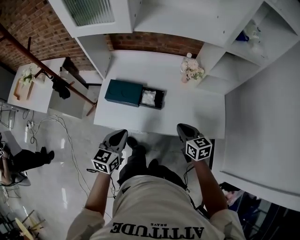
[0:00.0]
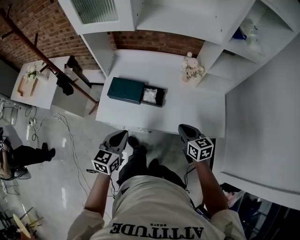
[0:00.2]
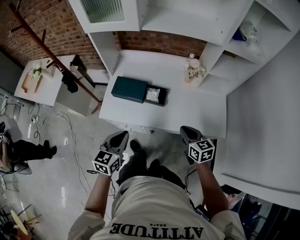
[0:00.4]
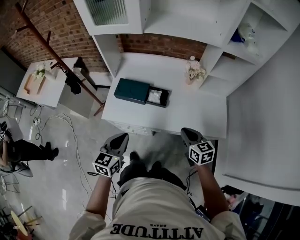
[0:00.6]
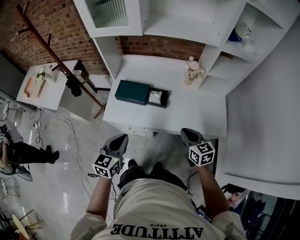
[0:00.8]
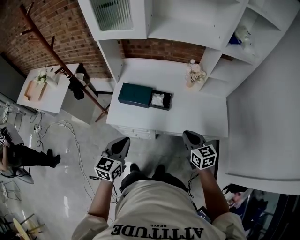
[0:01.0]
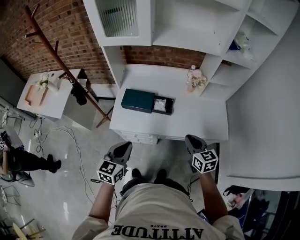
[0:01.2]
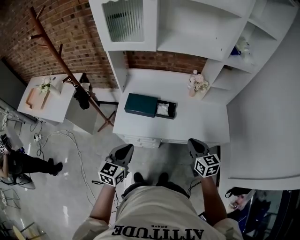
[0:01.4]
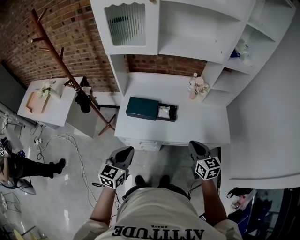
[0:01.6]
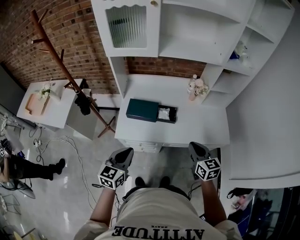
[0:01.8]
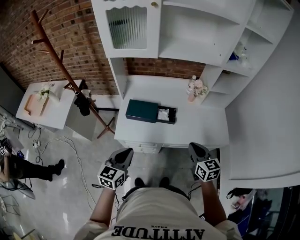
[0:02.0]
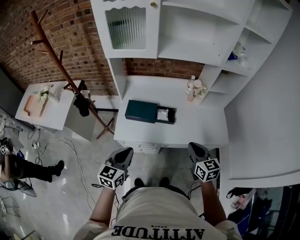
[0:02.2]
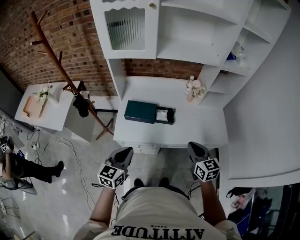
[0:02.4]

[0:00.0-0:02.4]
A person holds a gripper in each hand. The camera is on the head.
0:00.0 to 0:01.2: The right gripper shifts approximately 10 cm backward and upward. The left gripper heads backward, to the left and upward, covering about 15 cm.
0:01.2 to 0:02.4: The right gripper moves some 5 cm.

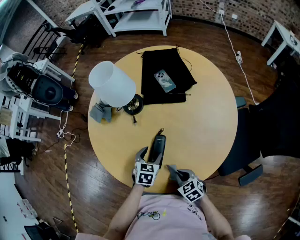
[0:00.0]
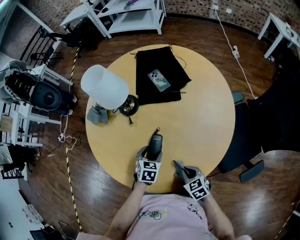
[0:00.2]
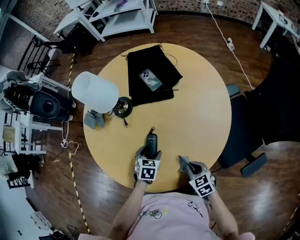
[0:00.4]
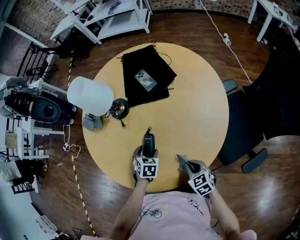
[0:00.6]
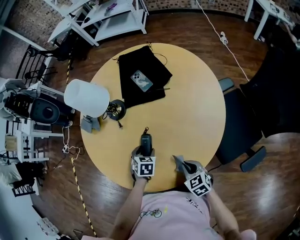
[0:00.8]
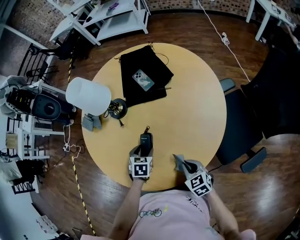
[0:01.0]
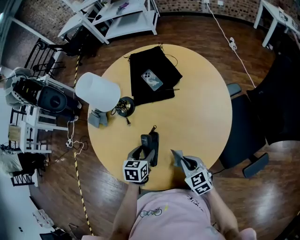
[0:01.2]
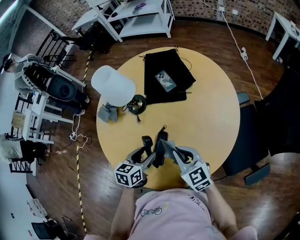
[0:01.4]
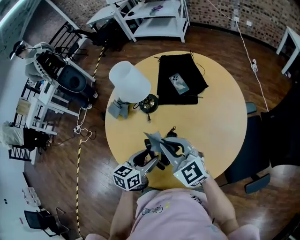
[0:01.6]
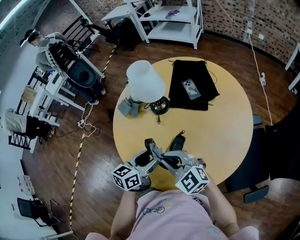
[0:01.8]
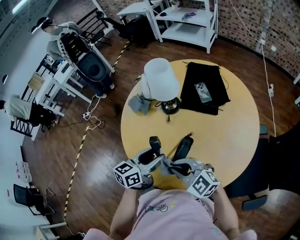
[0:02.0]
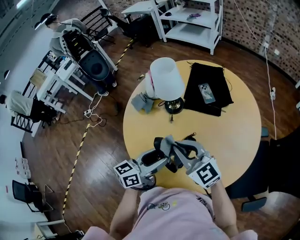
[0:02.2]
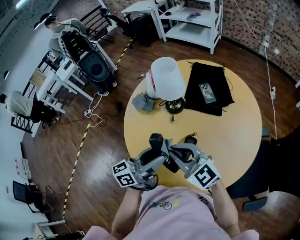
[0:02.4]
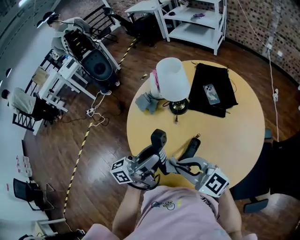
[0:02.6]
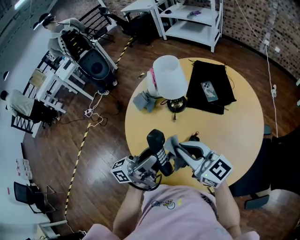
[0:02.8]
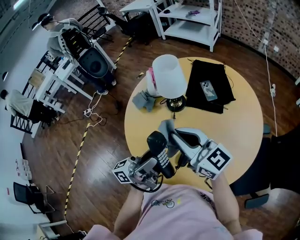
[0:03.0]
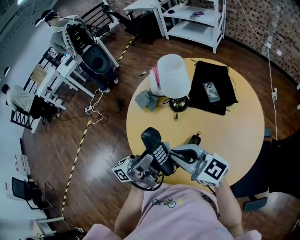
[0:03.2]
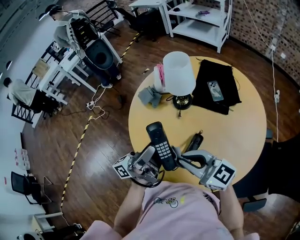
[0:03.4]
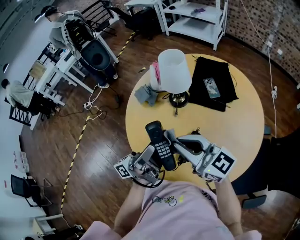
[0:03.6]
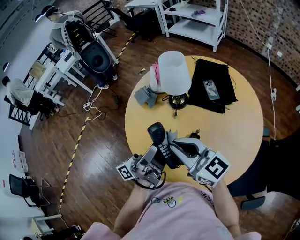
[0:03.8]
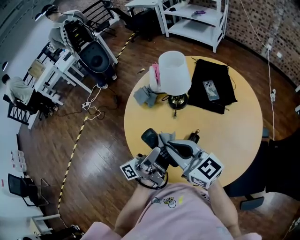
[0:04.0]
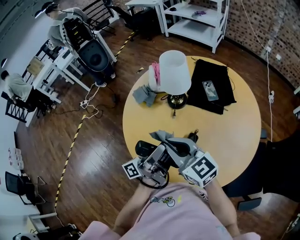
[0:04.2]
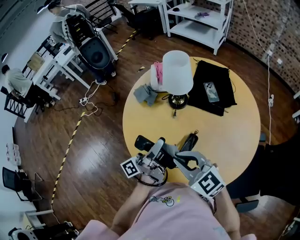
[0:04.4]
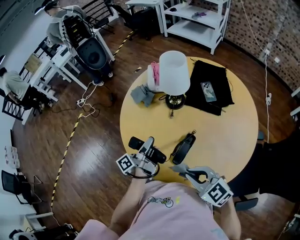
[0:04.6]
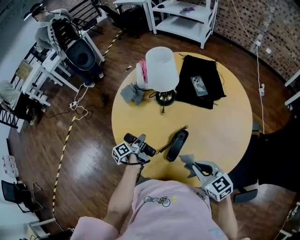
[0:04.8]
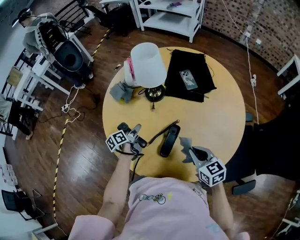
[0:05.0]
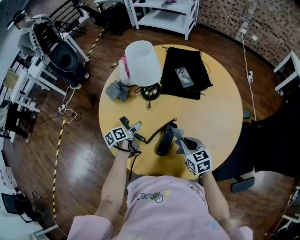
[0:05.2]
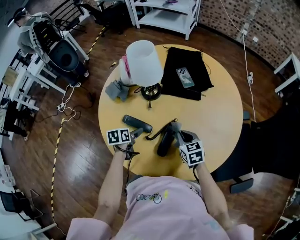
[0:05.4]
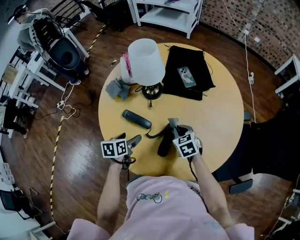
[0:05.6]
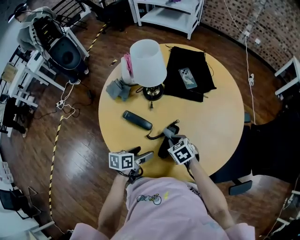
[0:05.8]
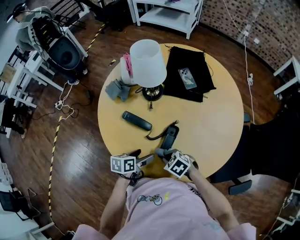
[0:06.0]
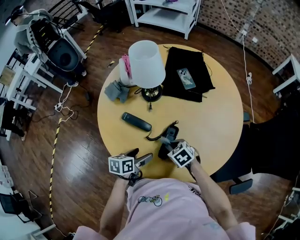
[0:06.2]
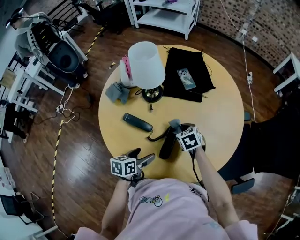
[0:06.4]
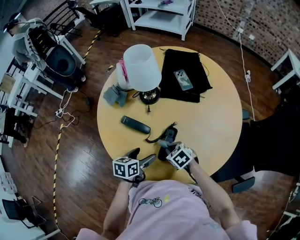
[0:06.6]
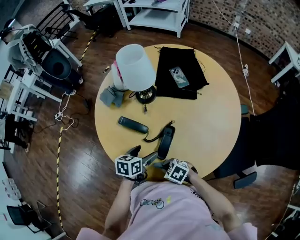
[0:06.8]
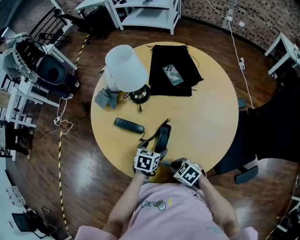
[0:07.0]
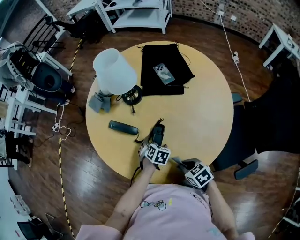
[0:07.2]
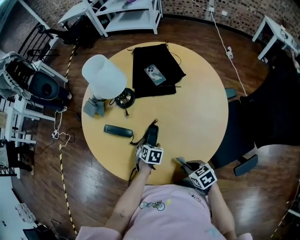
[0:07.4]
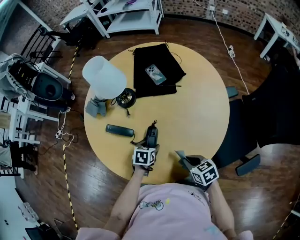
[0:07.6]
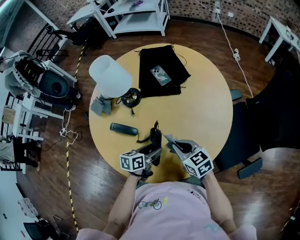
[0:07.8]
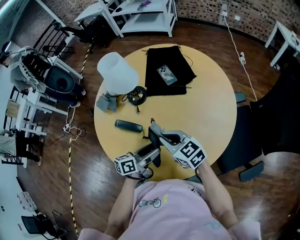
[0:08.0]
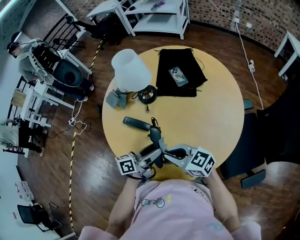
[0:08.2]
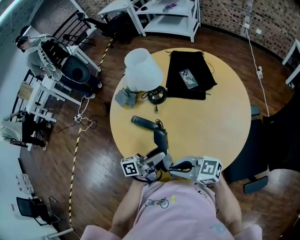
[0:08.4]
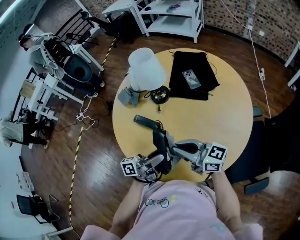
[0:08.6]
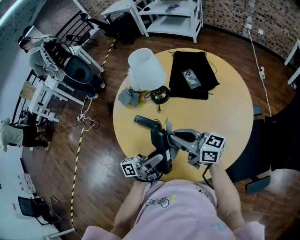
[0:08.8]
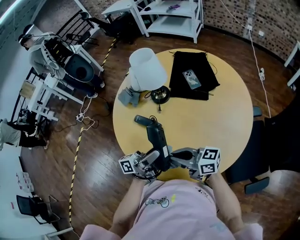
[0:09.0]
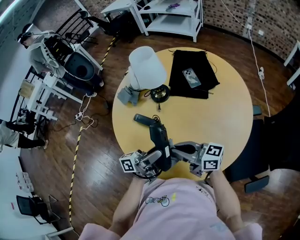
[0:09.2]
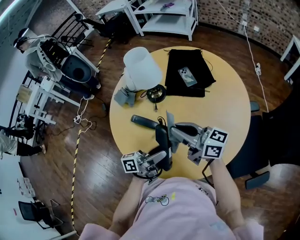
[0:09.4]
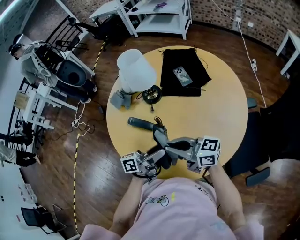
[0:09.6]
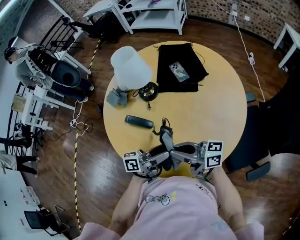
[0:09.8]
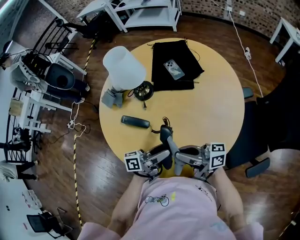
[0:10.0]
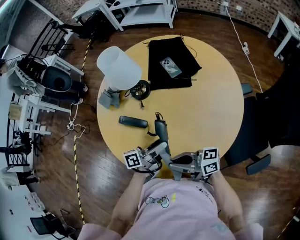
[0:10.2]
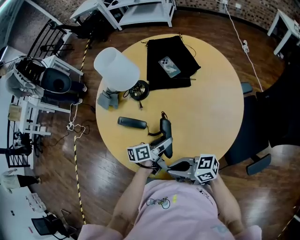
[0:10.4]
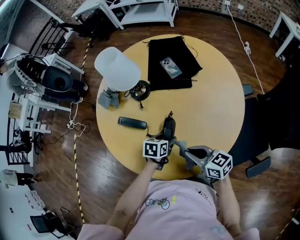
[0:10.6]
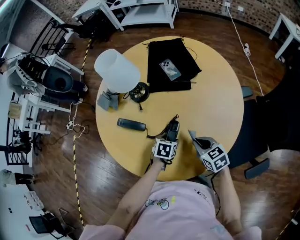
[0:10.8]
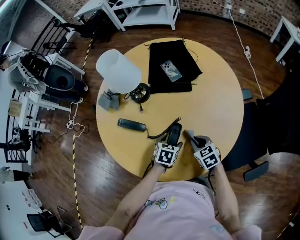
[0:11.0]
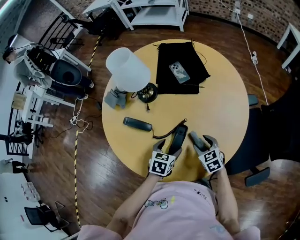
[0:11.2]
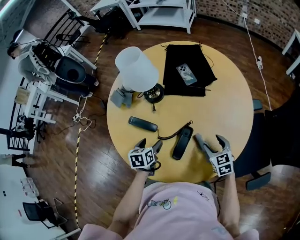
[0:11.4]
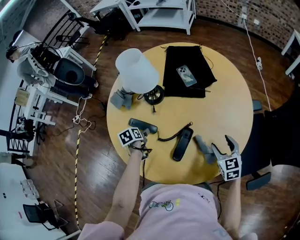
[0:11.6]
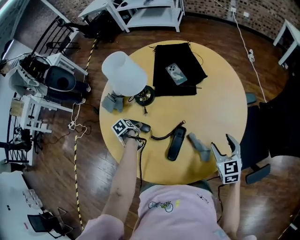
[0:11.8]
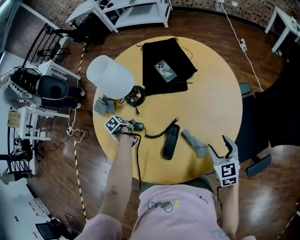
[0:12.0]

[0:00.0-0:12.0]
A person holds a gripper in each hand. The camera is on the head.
0:00.0 to 0:01.6: The left gripper heads upward, covering some 15 cm, and rotates approximately 30 degrees; the right gripper moves upward and forward, some 30 cm, and tips its fingers upward by approximately 40 degrees.
0:01.6 to 0:03.0: The left gripper travels upward and to the left by roughly 15 cm, and points its fingers approximately 60 degrees further upward. Meanwhile the right gripper is displaced upward and to the left by about 10 cm, and rotates some 30 degrees.
0:03.0 to 0:04.4: The right gripper moves up and down over some 10 cm, changing direction 2 times, and changes its angle by roughly 30 degrees. Meanwhile the left gripper moves downward, some 10 cm, and changes its angle by roughly 30 degrees.
0:04.4 to 0:06.0: Both grippers move downward, approximately 20 cm. The left gripper tilts its fingers roughly 60 degrees downward, and opens its fingers, while the right gripper tips its fingers downward by roughly 40 degrees.
0:06.0 to 0:07.6: The left gripper changes place by some 15 cm, and rotates about 40 degrees; the right gripper moves roughly 20 cm, and turns by roughly 50 degrees.
0:07.6 to 0:09.0: The left gripper goes some 25 cm upward, and tilts its fingers roughly 90 degrees upward. Meanwhile the right gripper shifts by about 20 cm, and points its fingers approximately 50 degrees further upward.
0:09.0 to 0:10.4: The left gripper shifts some 15 cm downward, and tilts its fingers about 50 degrees downward.
0:10.4 to 0:12.0: The left gripper moves up and down over some 10 cm, changing direction 2 times, and tips its fingers downward by roughly 50 degrees. The right gripper reaches approximately 15 cm downward, then returns, tilts its fingers some 30 degrees downward, and opens its fingers.

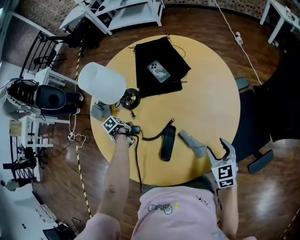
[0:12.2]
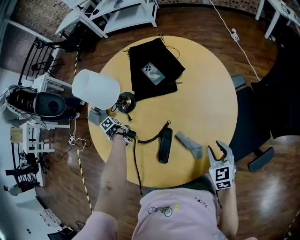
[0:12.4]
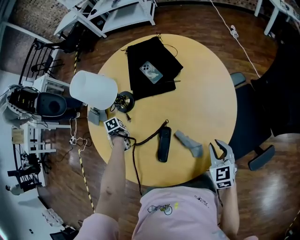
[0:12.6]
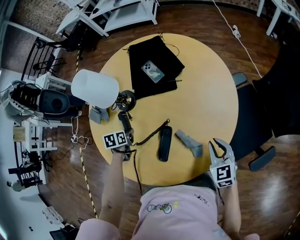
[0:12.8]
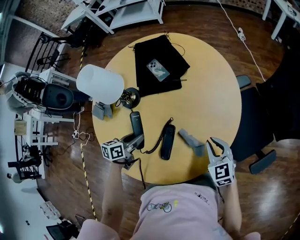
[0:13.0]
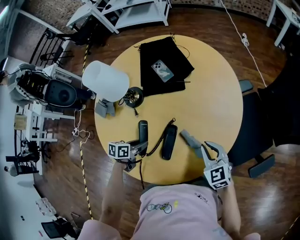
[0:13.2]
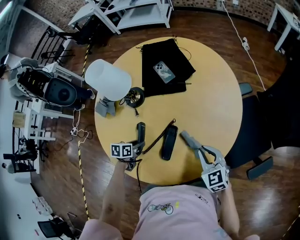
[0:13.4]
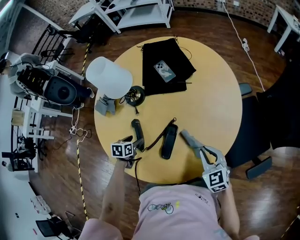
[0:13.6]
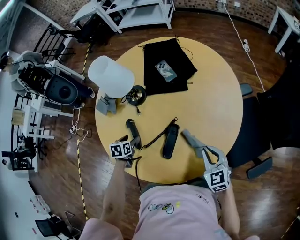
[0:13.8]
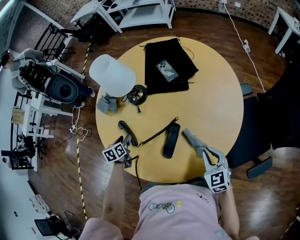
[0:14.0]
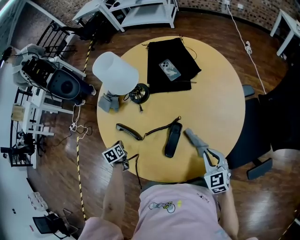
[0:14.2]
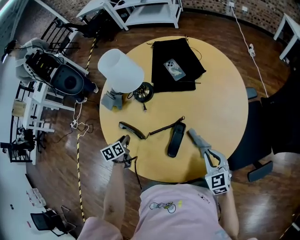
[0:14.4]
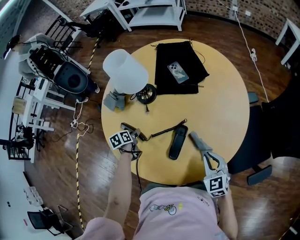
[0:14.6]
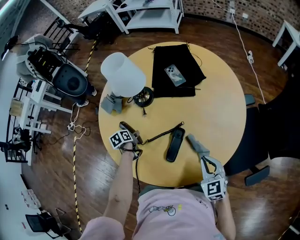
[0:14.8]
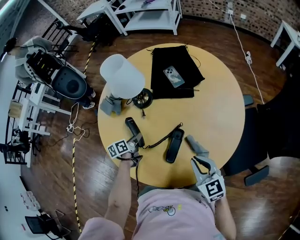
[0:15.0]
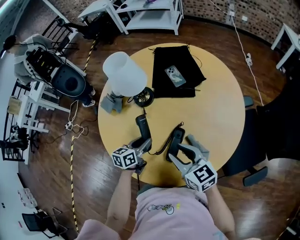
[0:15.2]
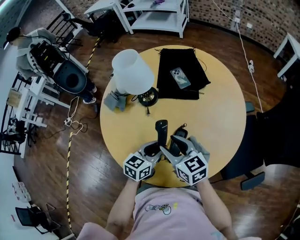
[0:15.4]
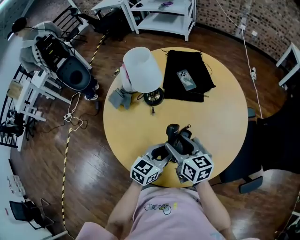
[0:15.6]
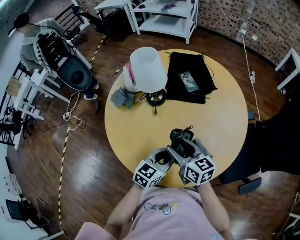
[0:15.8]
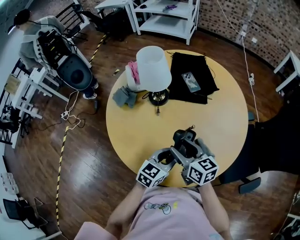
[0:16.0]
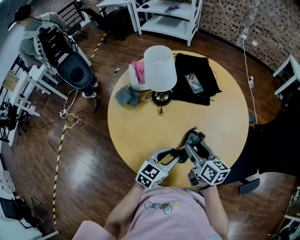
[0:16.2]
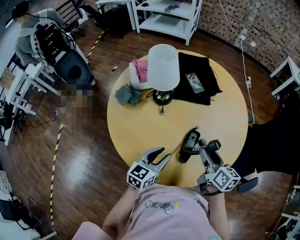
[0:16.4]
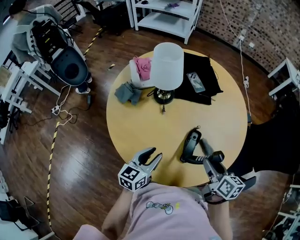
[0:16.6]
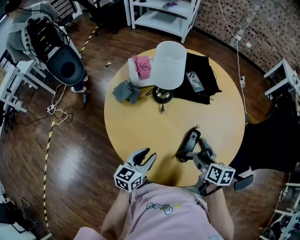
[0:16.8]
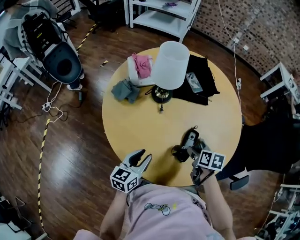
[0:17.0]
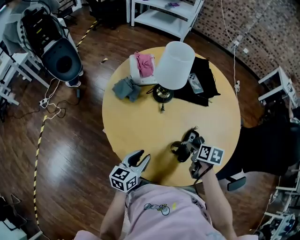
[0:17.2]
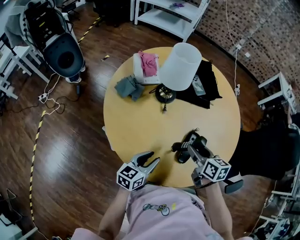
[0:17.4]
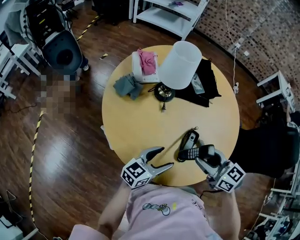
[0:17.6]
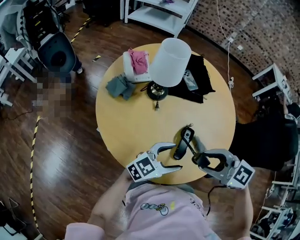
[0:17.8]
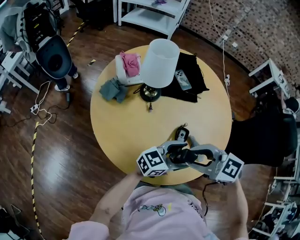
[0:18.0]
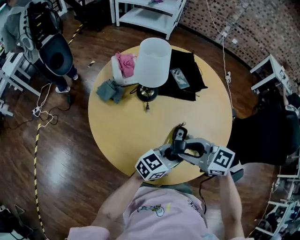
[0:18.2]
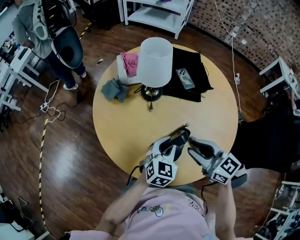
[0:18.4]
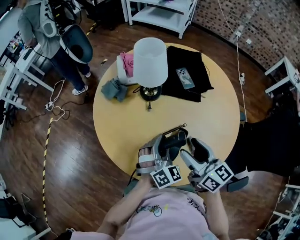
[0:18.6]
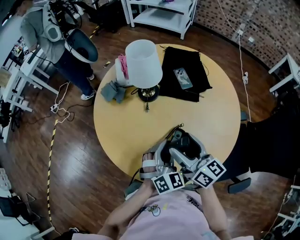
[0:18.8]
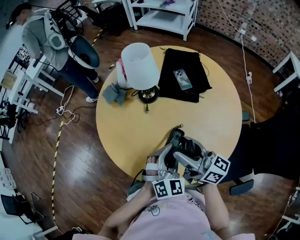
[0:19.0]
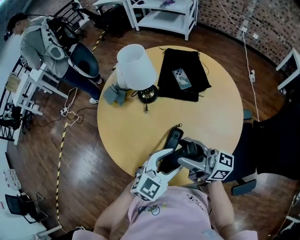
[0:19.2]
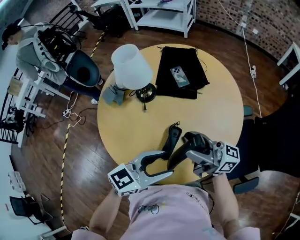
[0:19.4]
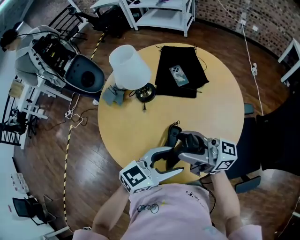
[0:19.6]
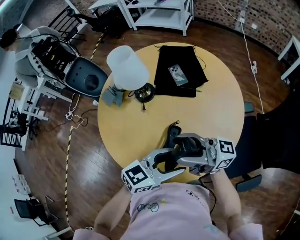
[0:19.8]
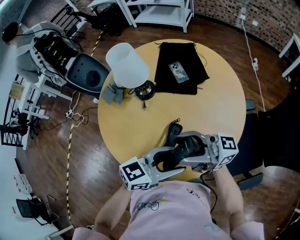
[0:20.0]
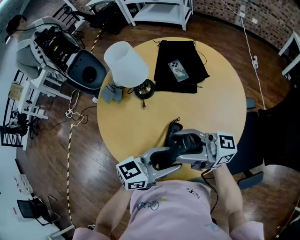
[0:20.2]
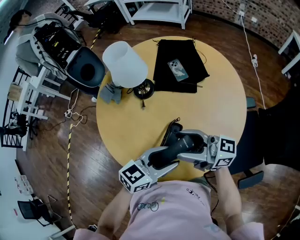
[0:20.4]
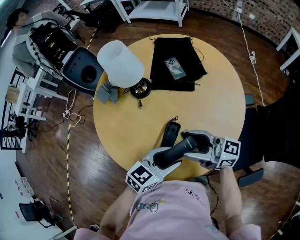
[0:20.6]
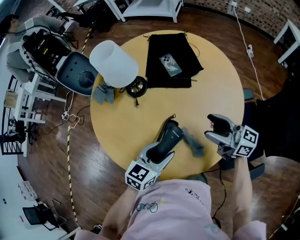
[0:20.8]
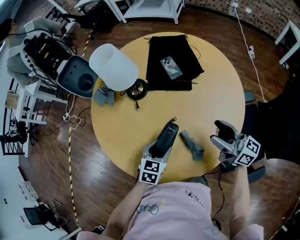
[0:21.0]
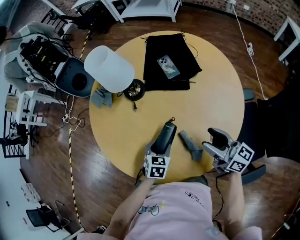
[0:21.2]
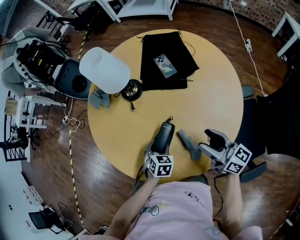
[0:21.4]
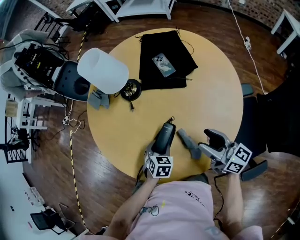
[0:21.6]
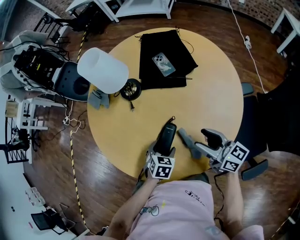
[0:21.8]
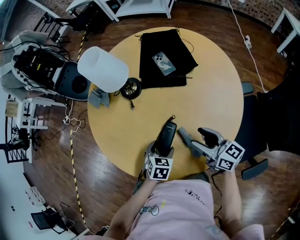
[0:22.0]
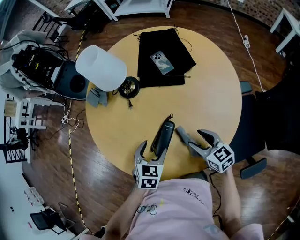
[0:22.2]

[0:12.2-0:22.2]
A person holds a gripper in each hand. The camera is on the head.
0:12.2 to 0:13.6: The right gripper changes place by some 5 cm, and closes up. The left gripper goes upward and returns, roughly 10 cm each way, twists about 40 degrees clockwise, seen from behind, and closes, then opens again.
0:13.6 to 0:15.0: The right gripper goes roughly 10 cm to the left and upward, while the left gripper moves about 15 cm to the left and comes back, turns by roughly 40 degrees, and closes its fingers.
0:15.0 to 0:16.4: The left gripper shifts some 20 cm upward, backward and to the right, and rolls clockwise, seen from behind, by about 40 degrees. The right gripper is displaced to the left by approximately 5 cm, changes its angle by roughly 40 degrees, and opens.
0:16.4 to 0:18.0: The left gripper shifts by about 10 cm, rotates about 40 degrees, and opens its fingers, while the right gripper goes downward and returns, some 10 cm each way, and turns by some 70 degrees.
0:18.0 to 0:19.4: The right gripper ends up some 15 cm from where it was, tips its fingers upward by approximately 60 degrees, and opens up. The left gripper shifts some 5 cm upward, turns by roughly 20 degrees, and closes, then reopens.
0:19.4 to 0:20.8: The left gripper moves downward, roughly 10 cm, and changes its angle by approximately 20 degrees. The right gripper ends up about 15 cm from where it was, and swivels roughly 20 degrees.
0:20.8 to 0:22.2: The right gripper is displaced downward by about 15 cm, and angles its fingers downward, by roughly 30 degrees. The left gripper moves downward, roughly 5 cm, and changes its angle by roughly 30 degrees.
